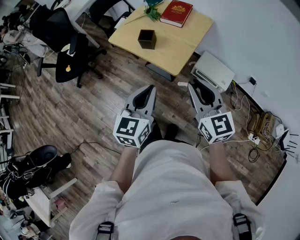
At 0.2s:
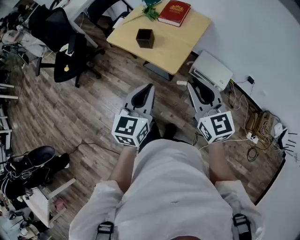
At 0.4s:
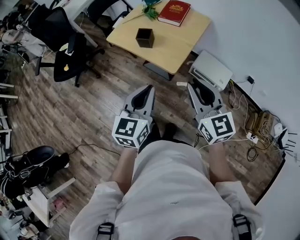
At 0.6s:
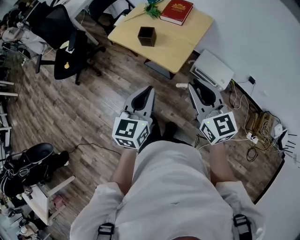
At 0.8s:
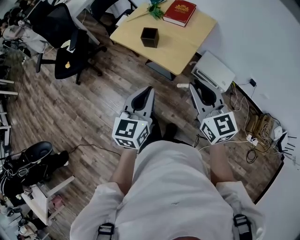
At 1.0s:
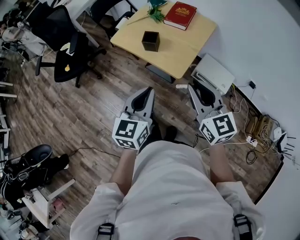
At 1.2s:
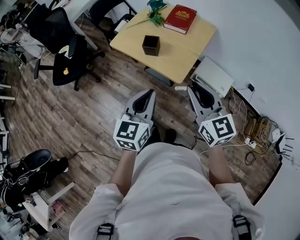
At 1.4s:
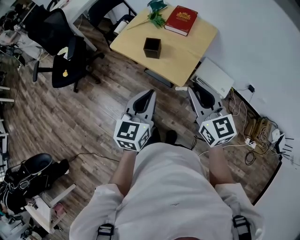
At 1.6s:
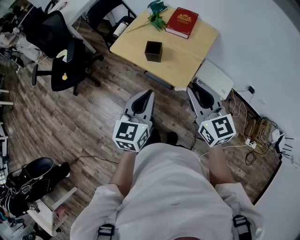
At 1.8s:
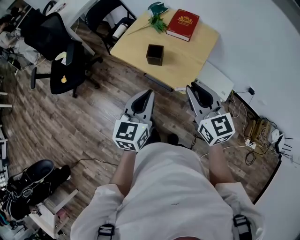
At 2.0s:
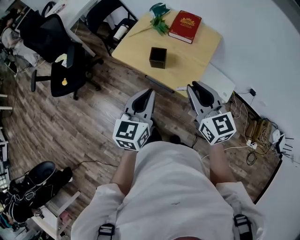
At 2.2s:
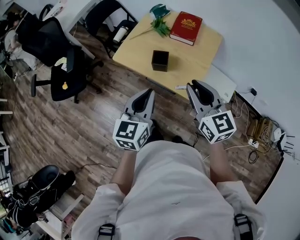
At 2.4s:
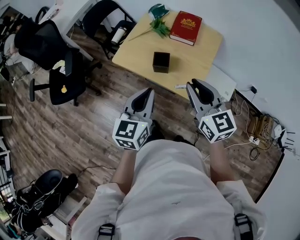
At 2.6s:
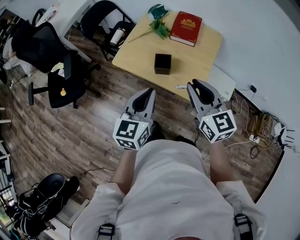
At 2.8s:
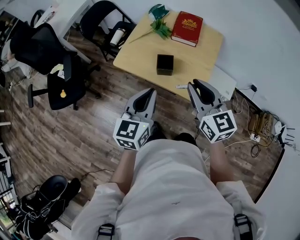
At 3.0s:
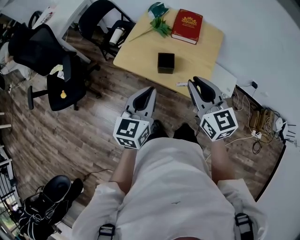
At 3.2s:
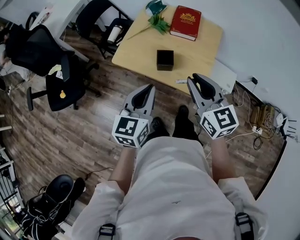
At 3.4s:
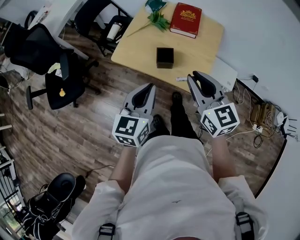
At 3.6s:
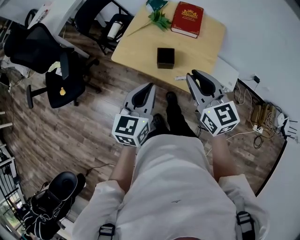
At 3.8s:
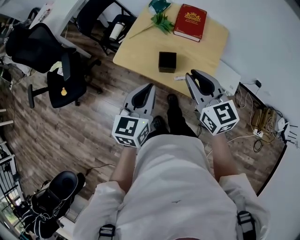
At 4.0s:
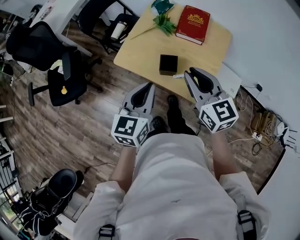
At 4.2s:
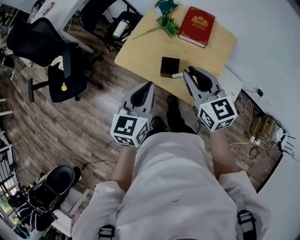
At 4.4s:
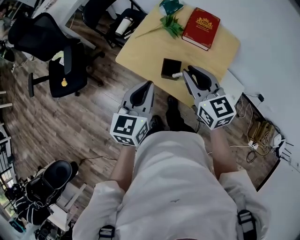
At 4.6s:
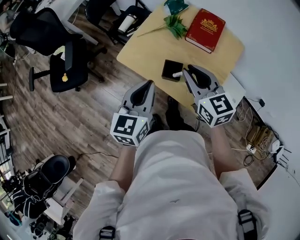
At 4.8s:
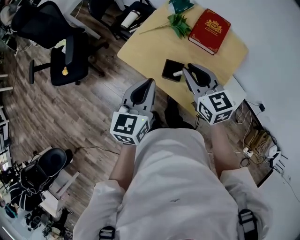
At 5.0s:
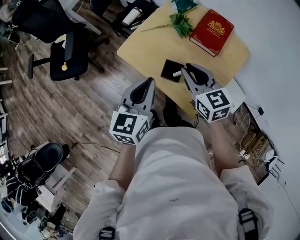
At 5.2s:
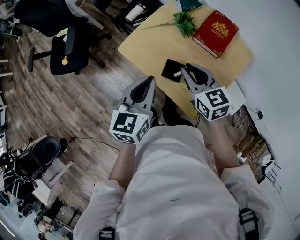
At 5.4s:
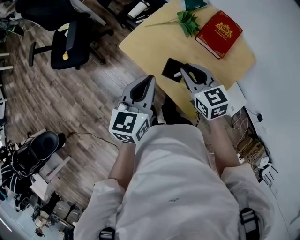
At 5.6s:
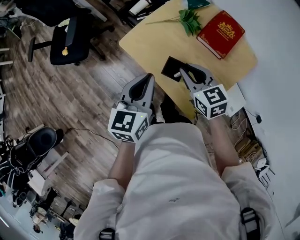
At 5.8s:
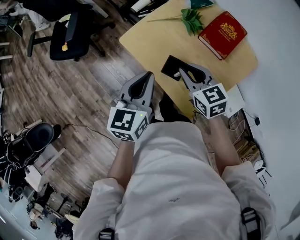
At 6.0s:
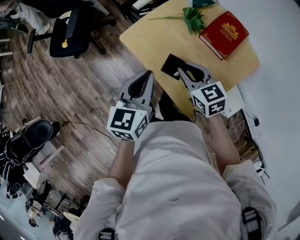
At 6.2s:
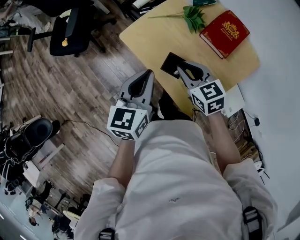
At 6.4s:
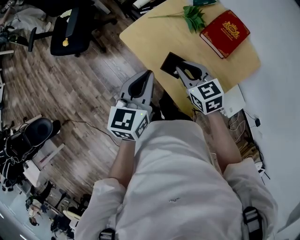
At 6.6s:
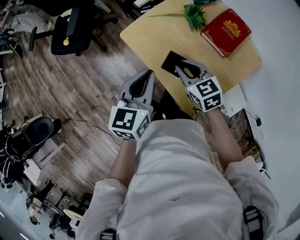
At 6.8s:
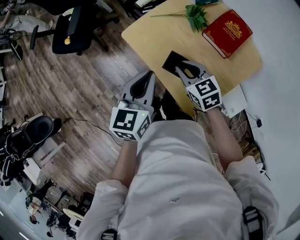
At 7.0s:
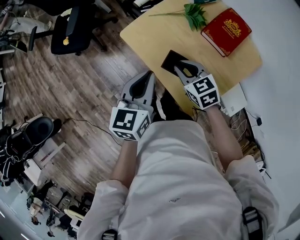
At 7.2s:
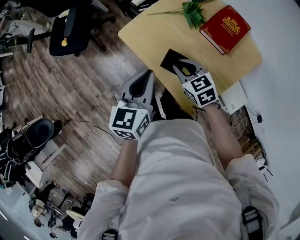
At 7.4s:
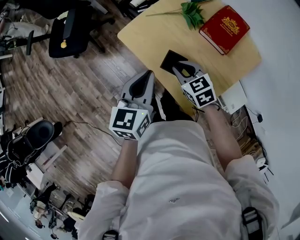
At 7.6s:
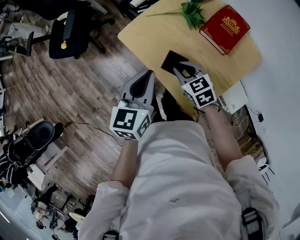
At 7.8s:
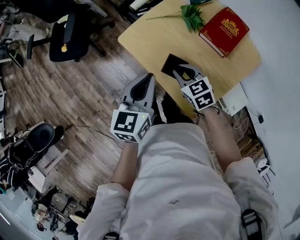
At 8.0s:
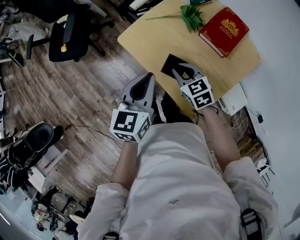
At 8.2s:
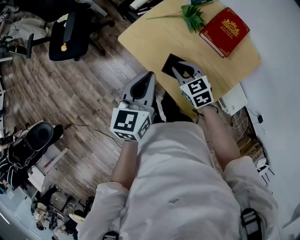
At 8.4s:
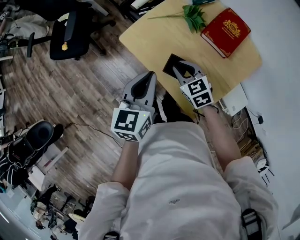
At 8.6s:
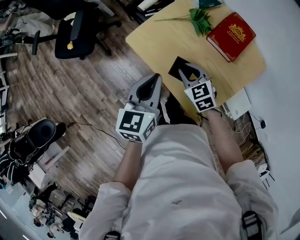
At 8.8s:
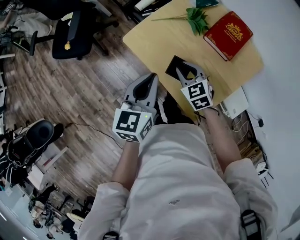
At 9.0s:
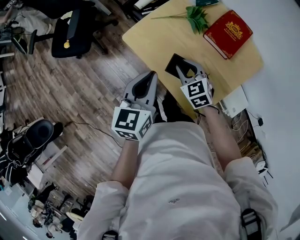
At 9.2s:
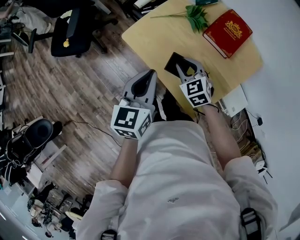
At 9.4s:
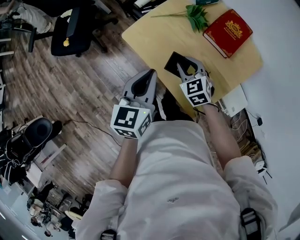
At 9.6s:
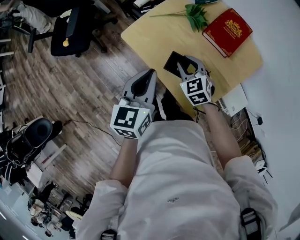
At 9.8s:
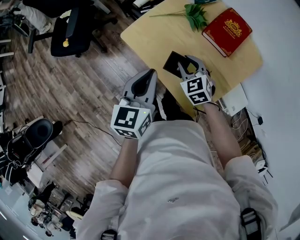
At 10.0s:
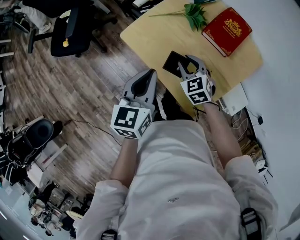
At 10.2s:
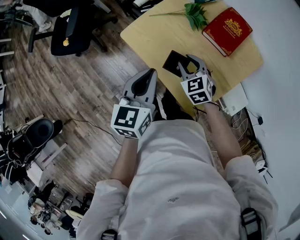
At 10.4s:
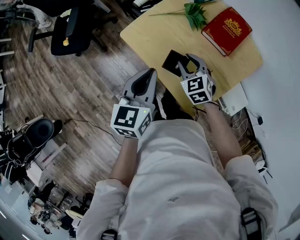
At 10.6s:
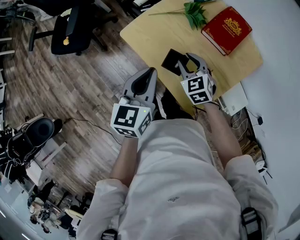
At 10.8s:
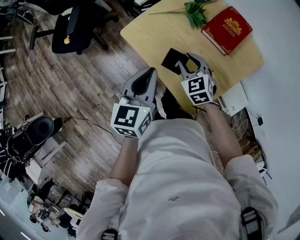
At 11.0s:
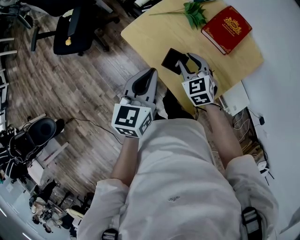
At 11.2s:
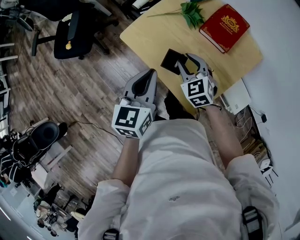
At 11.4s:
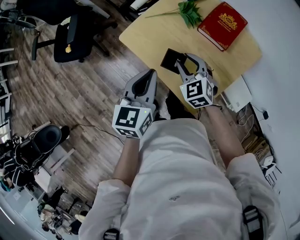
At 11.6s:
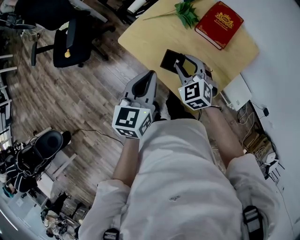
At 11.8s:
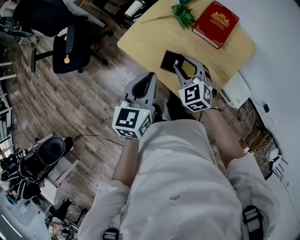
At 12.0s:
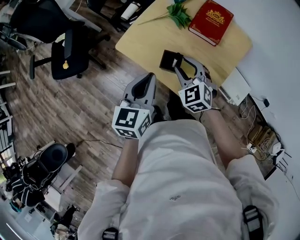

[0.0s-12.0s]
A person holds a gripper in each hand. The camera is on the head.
0.0s to 1.6s: Both grippers travel together forward and to the left, some 10 cm.
1.6s to 3.0s: Both grippers move forward and to the left, roughly 15 cm.
3.0s to 4.4s: The grippers both shift forward by some 10 cm.
4.4s to 6.0s: The right gripper is displaced downward and forward by some 15 cm, and swivels roughly 30 degrees; the left gripper changes place by roughly 5 cm.
6.0s to 7.6s: The right gripper shifts some 10 cm downward.
7.6s to 10.4s: There are only small adjustments of the grippers.
10.4s to 12.0s: The right gripper travels upward by some 5 cm.

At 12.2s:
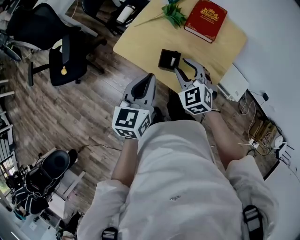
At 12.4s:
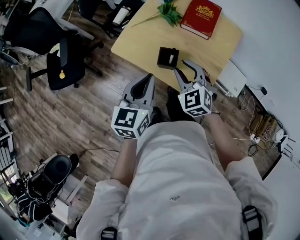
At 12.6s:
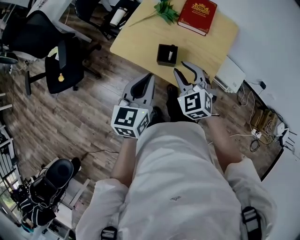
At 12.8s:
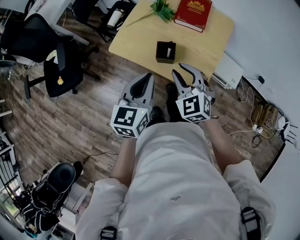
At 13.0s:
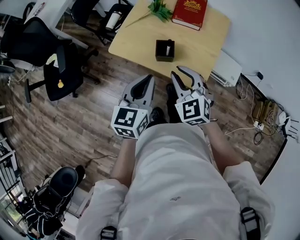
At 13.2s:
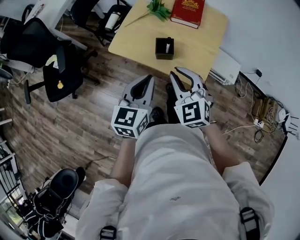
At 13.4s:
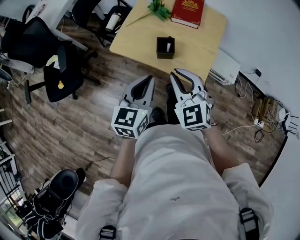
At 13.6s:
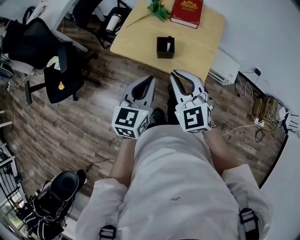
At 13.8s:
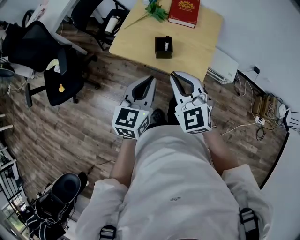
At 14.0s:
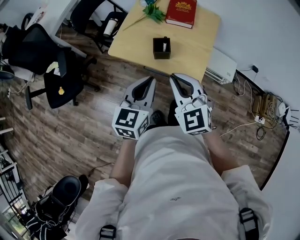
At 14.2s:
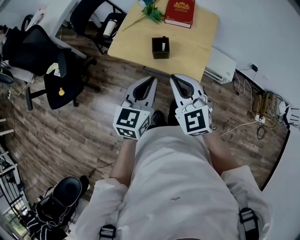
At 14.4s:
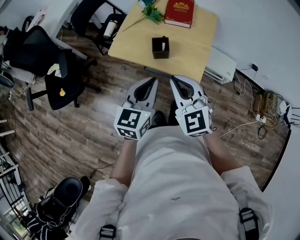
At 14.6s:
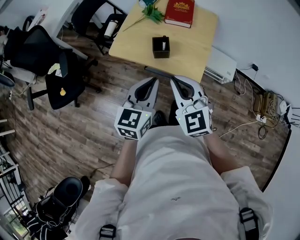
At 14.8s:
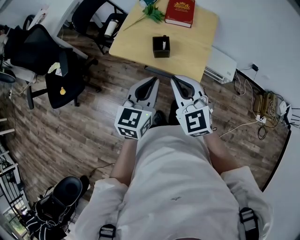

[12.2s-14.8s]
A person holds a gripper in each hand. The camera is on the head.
12.2s to 13.4s: The left gripper travels backward by some 10 cm. Meanwhile the right gripper travels backward and upward by approximately 20 cm, and closes.
13.4s to 14.8s: The left gripper ends up approximately 5 cm from where it was, while the right gripper moves backward, roughly 5 cm.

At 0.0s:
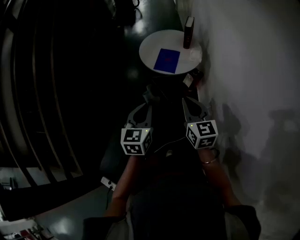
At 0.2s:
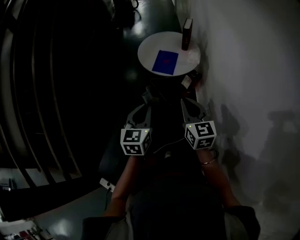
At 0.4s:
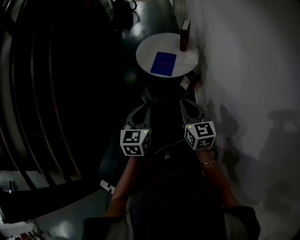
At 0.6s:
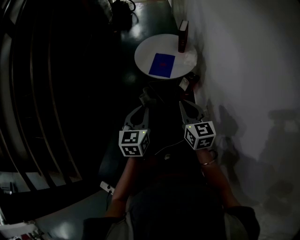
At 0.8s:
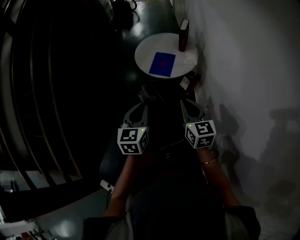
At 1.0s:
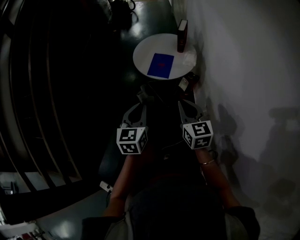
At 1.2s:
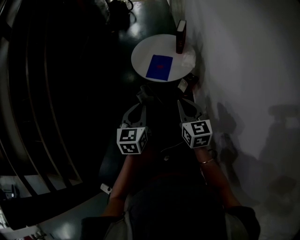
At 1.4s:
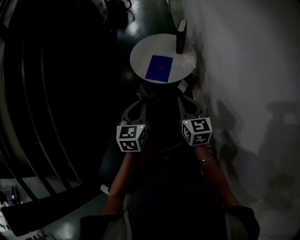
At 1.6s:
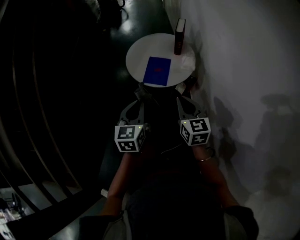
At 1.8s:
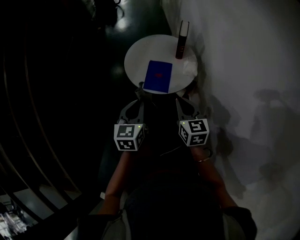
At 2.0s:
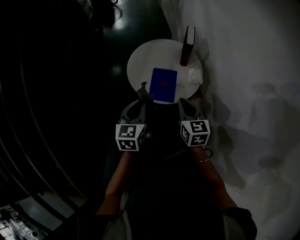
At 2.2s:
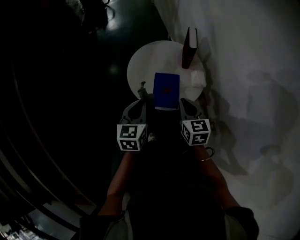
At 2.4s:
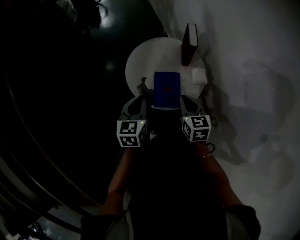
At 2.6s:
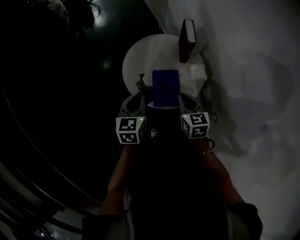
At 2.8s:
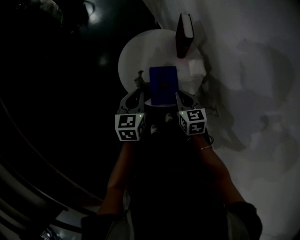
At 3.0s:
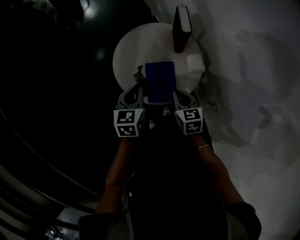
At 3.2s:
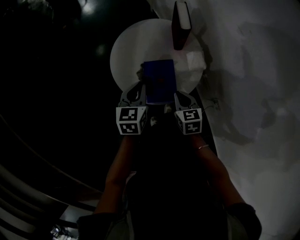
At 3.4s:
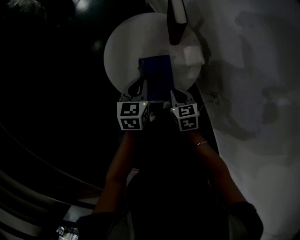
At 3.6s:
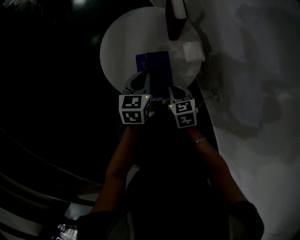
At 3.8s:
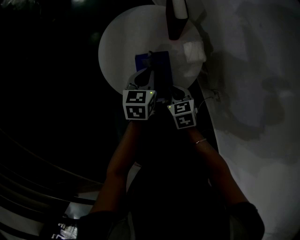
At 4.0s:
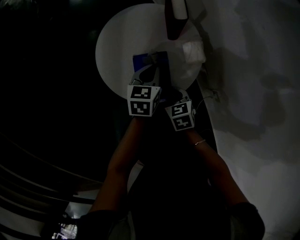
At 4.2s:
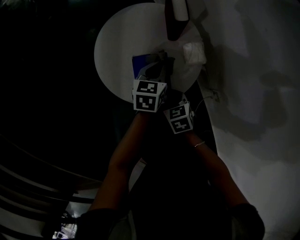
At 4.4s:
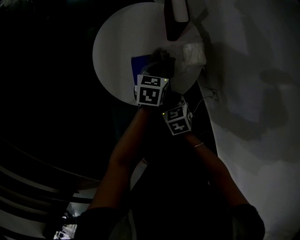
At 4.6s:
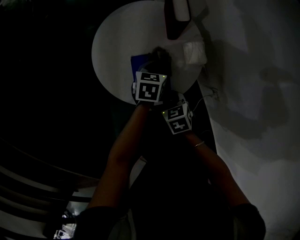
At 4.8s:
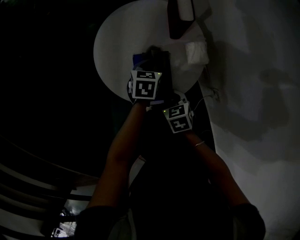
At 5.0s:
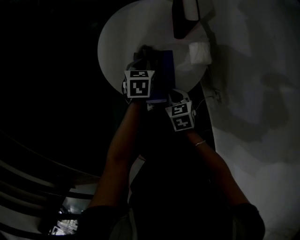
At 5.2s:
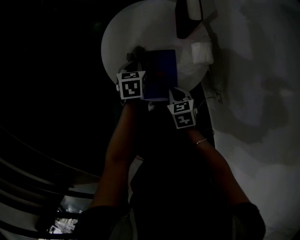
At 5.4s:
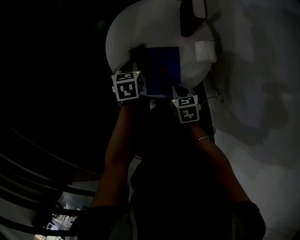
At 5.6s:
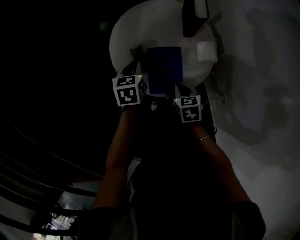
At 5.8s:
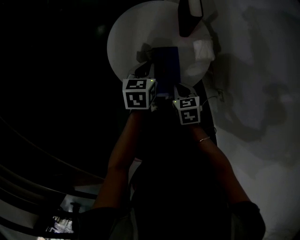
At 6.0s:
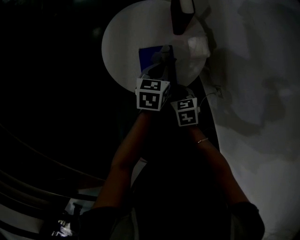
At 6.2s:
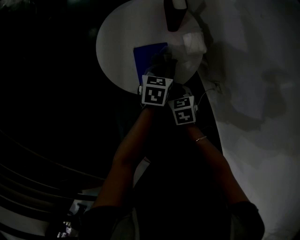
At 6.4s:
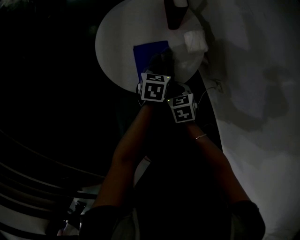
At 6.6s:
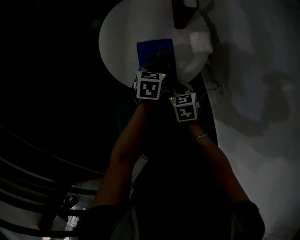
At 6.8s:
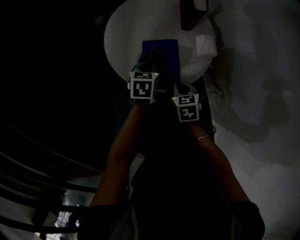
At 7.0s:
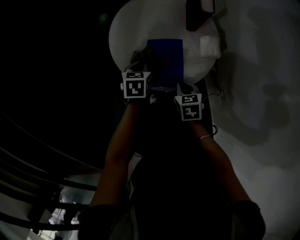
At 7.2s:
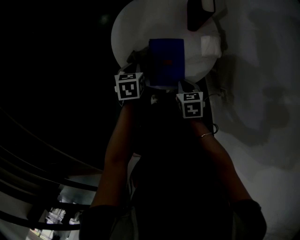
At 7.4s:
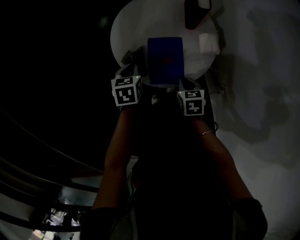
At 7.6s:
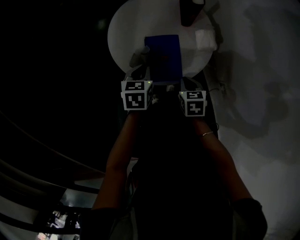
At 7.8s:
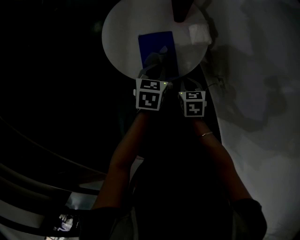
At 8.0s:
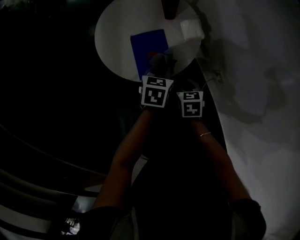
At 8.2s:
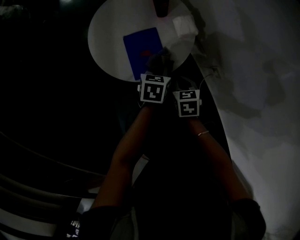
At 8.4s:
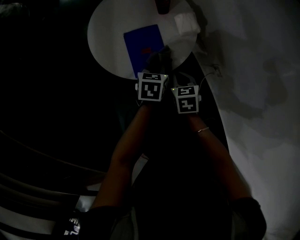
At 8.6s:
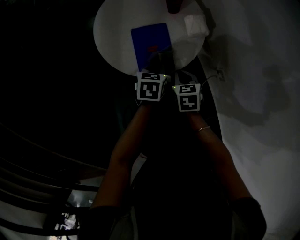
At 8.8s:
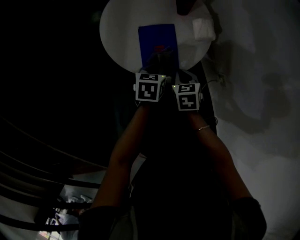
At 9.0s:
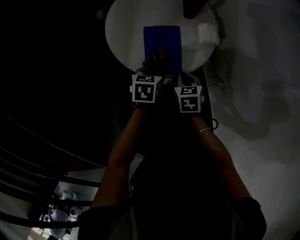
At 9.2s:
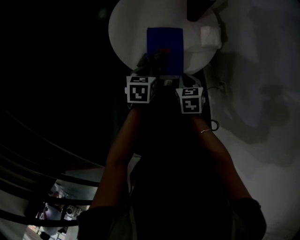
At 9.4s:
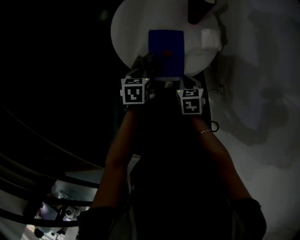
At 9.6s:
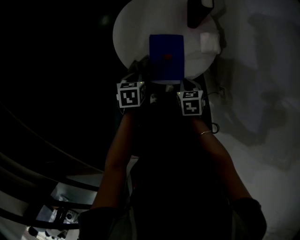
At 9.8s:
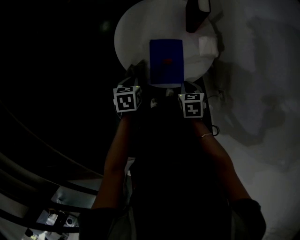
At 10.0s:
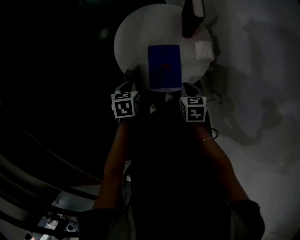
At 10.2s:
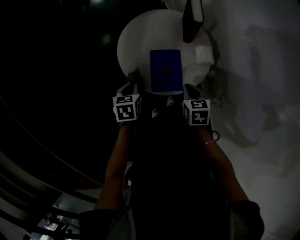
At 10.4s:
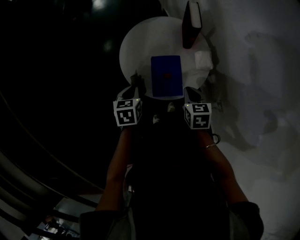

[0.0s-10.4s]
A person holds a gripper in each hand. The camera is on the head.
0.0s to 1.4s: Both grippers move forward, about 10 cm.
1.4s to 3.0s: The left gripper travels forward by about 35 cm, and turns by approximately 20 degrees. The right gripper shifts some 30 cm forward and downward, and swivels about 30 degrees.
3.0s to 4.4s: The right gripper goes approximately 10 cm downward, and turns by some 20 degrees, while the left gripper travels to the right, downward and forward by roughly 20 cm, and changes its angle by approximately 20 degrees.
4.4s to 6.0s: The left gripper is displaced backward by approximately 5 cm, and travels to the left and back again, roughly 15 cm each way.
6.0s to 7.4s: The left gripper shifts about 15 cm to the left, and turns by approximately 20 degrees.
7.4s to 9.0s: The left gripper is displaced to the right by some 10 cm.
9.0s to 10.4s: The left gripper heads to the left and upward, covering approximately 15 cm. The right gripper shifts roughly 10 cm upward.
